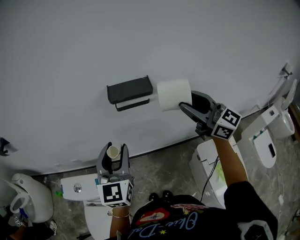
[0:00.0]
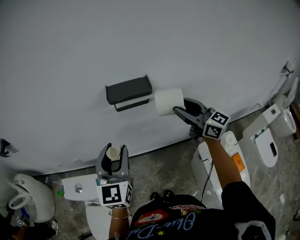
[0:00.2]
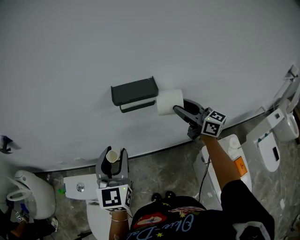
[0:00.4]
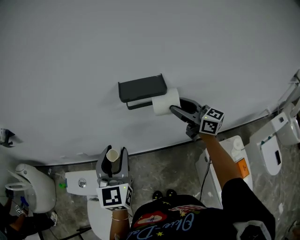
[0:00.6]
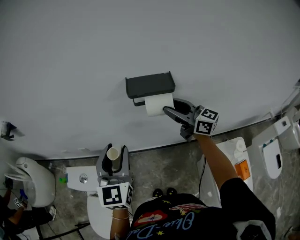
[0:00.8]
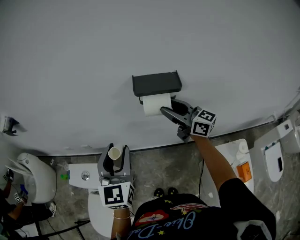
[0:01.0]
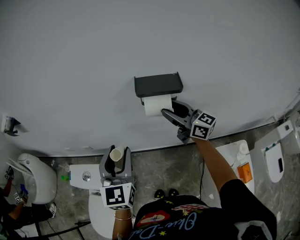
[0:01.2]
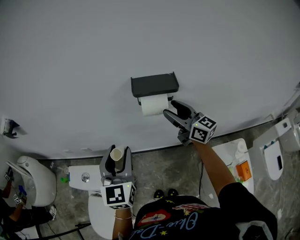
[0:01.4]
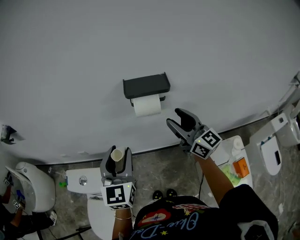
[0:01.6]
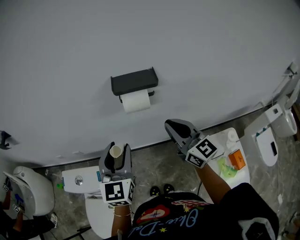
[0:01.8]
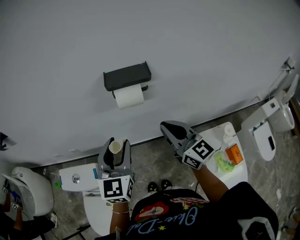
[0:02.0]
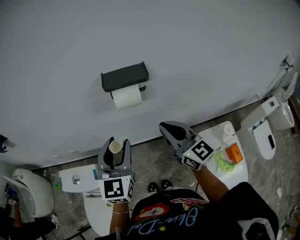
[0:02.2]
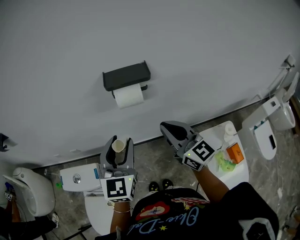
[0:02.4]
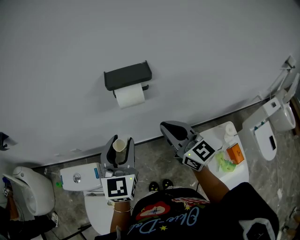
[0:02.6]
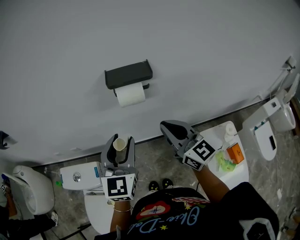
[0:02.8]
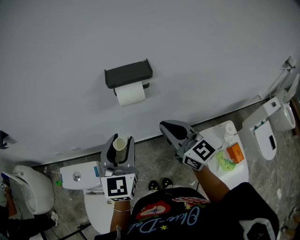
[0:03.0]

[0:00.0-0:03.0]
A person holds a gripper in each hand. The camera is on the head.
0.0 to 1.6 s: The right gripper travels downward and to the left by some 10 cm.
1.6 to 3.0 s: The right gripper shifts roughly 10 cm backward, and closes; the left gripper moves to the right, roughly 5 cm.

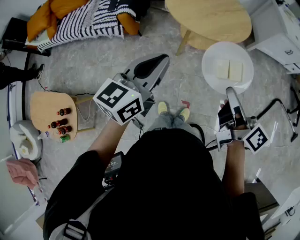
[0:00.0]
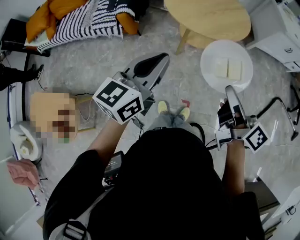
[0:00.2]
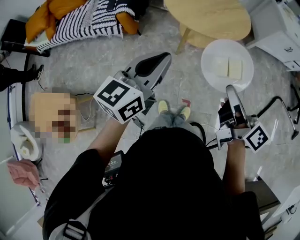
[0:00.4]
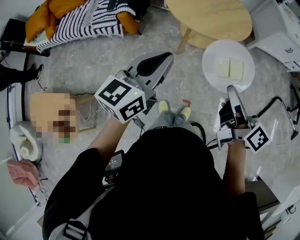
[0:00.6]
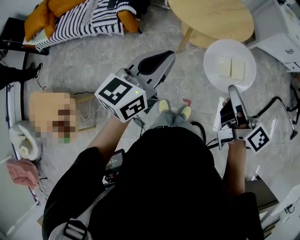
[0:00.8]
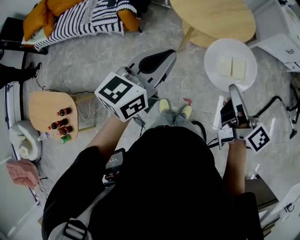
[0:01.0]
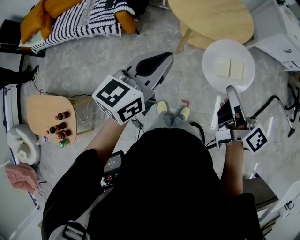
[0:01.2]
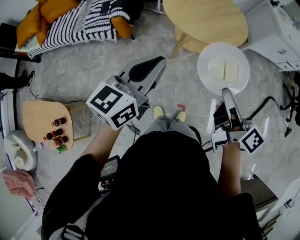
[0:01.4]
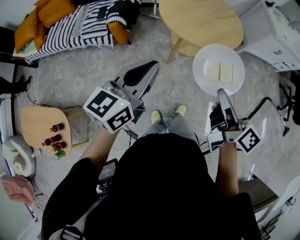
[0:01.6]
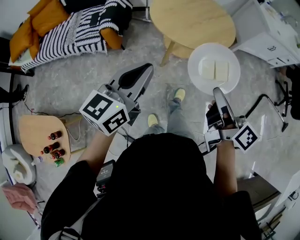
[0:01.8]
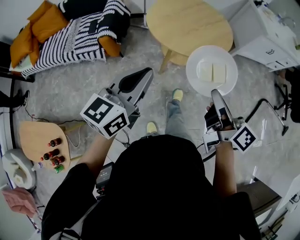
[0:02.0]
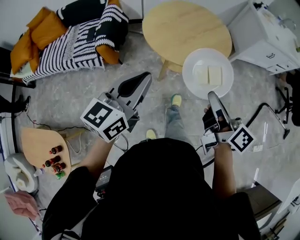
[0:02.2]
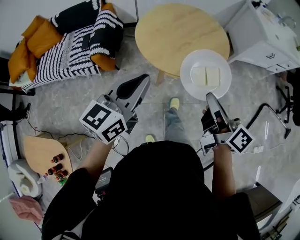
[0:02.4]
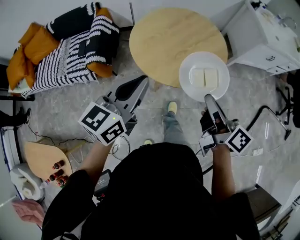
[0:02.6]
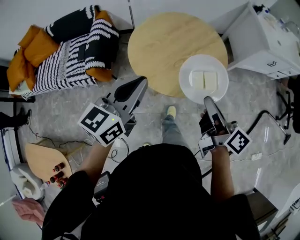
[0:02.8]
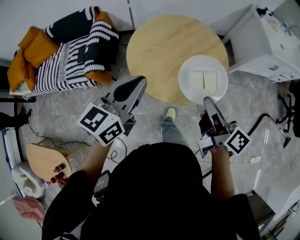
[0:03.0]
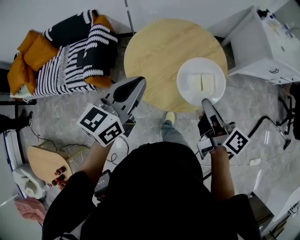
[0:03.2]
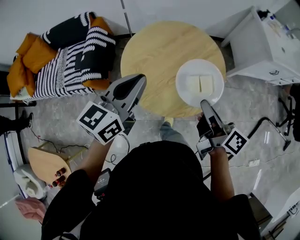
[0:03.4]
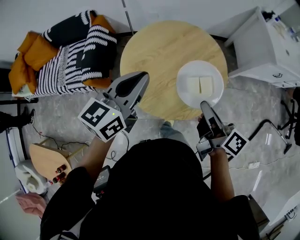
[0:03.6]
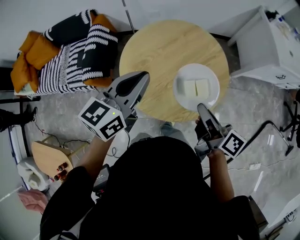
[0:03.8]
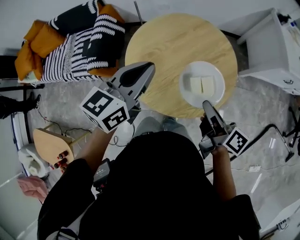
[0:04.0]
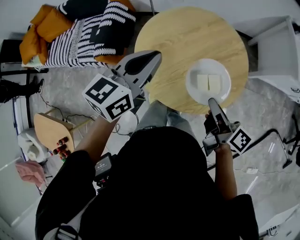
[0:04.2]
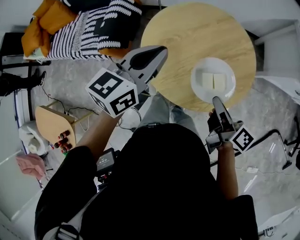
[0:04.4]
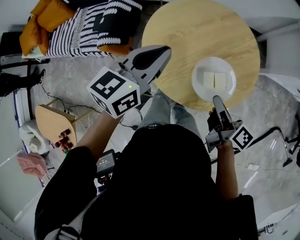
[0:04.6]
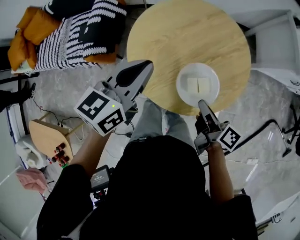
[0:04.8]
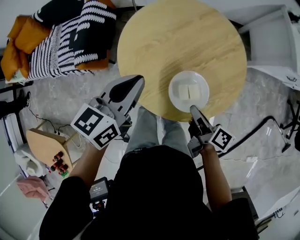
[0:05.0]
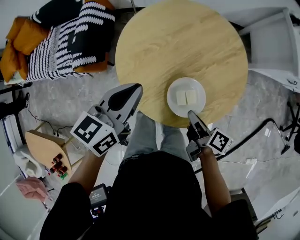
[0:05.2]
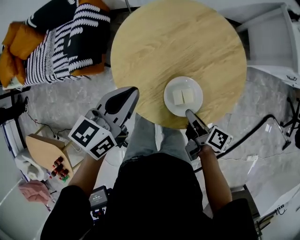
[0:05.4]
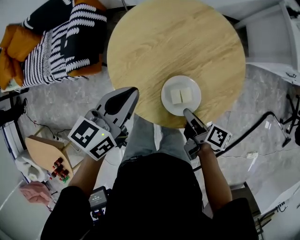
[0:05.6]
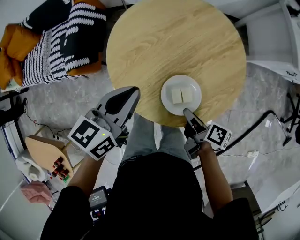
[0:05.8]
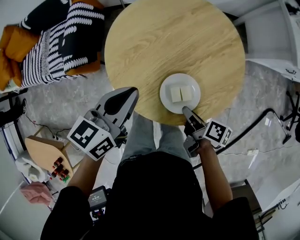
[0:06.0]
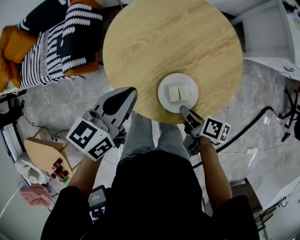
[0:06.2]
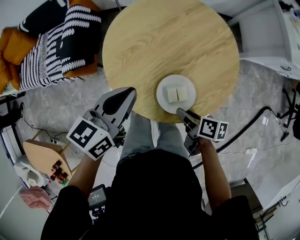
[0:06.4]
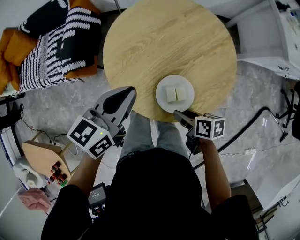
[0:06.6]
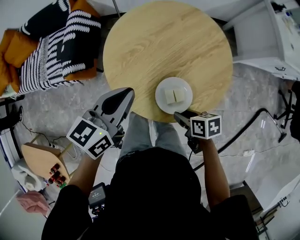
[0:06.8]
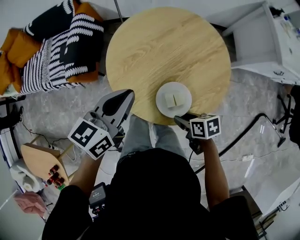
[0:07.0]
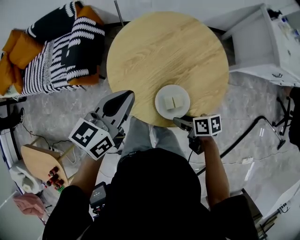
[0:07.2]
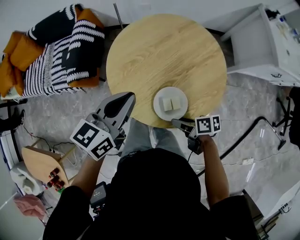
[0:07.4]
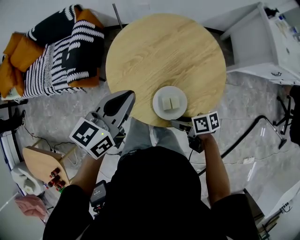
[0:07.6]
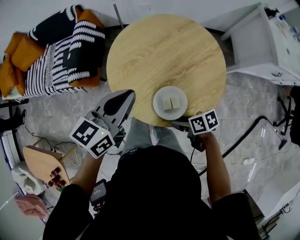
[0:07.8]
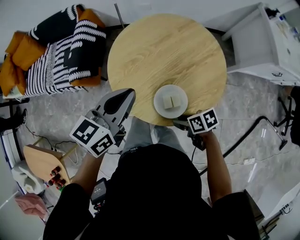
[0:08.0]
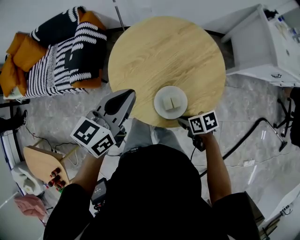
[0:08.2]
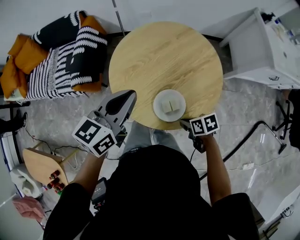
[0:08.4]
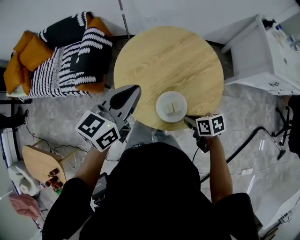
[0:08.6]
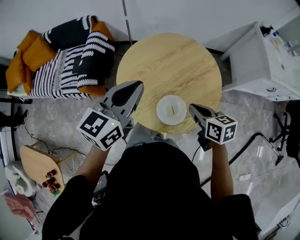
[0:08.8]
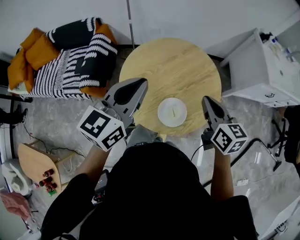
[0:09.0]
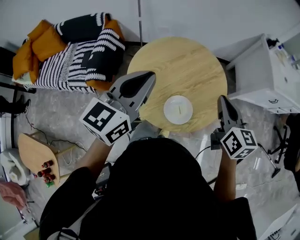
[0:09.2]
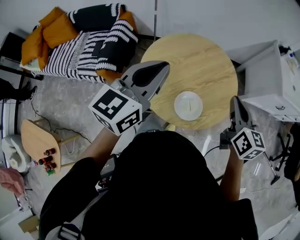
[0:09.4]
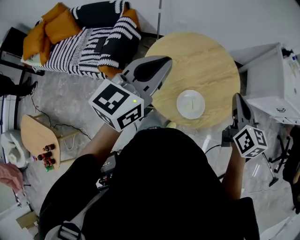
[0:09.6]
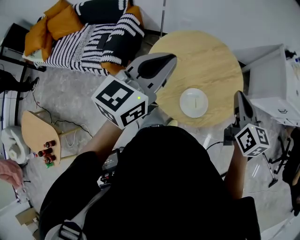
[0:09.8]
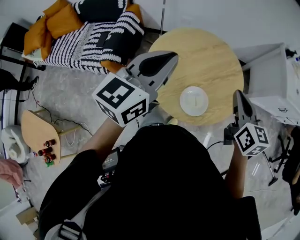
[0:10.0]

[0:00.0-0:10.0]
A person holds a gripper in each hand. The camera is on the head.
0.0 to 1.4 s: There are only small adjustments of the grippers.
1.4 to 2.8 s: Both grippers travel together forward, approximately 25 cm.
2.8 to 4.2 s: The right gripper moves forward and downward, some 15 cm; the left gripper heads forward, covering roughly 15 cm.
4.2 to 5.8 s: Both grippers move downward, approximately 15 cm. The right gripper turns by roughly 20 degrees.
5.8 to 7.2 s: The right gripper turns by approximately 40 degrees, and opens.
7.2 to 8.6 s: The right gripper moves approximately 5 cm, and closes its fingers; the left gripper is displaced upward by roughly 5 cm.
8.6 to 10.0 s: The right gripper goes approximately 25 cm upward, and swivels approximately 50 degrees, while the left gripper heads upward, covering about 10 cm.

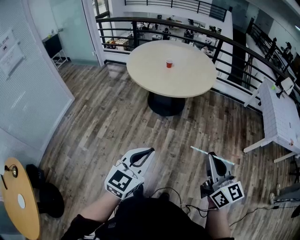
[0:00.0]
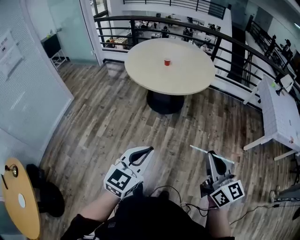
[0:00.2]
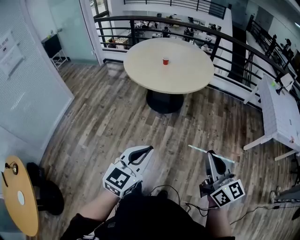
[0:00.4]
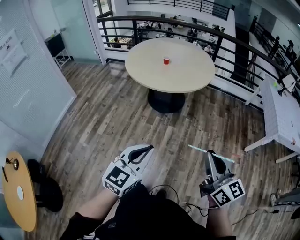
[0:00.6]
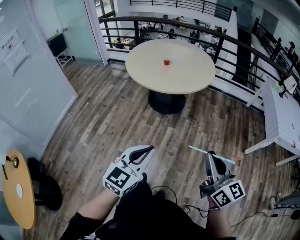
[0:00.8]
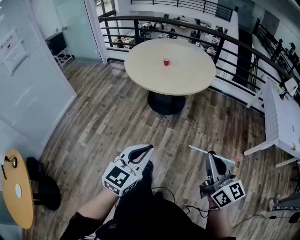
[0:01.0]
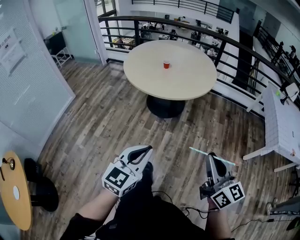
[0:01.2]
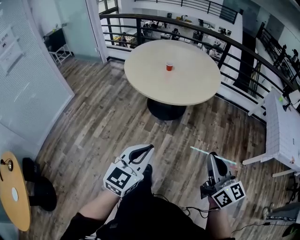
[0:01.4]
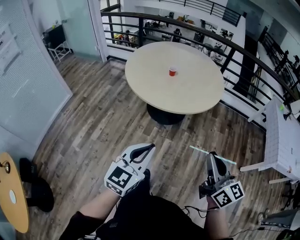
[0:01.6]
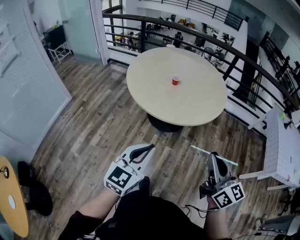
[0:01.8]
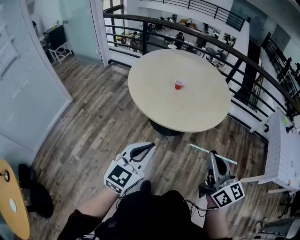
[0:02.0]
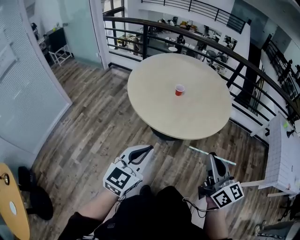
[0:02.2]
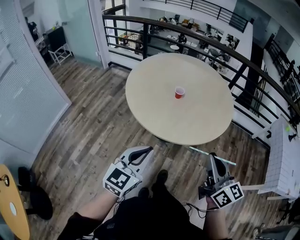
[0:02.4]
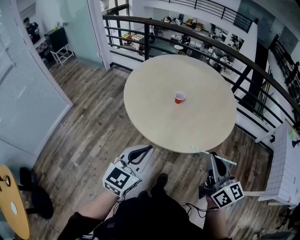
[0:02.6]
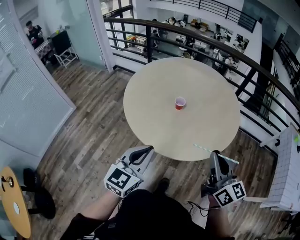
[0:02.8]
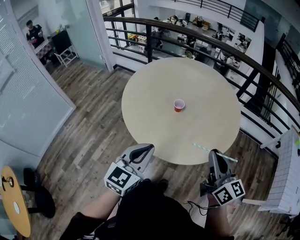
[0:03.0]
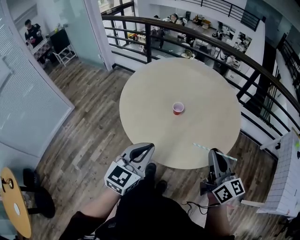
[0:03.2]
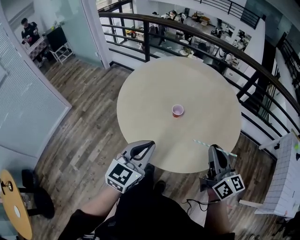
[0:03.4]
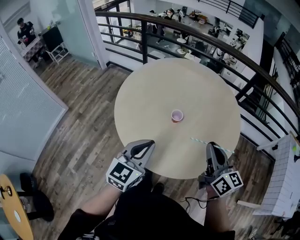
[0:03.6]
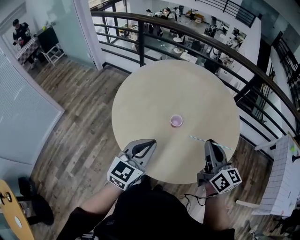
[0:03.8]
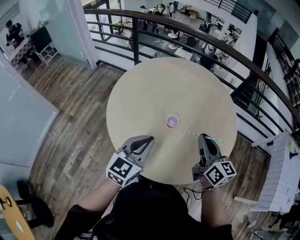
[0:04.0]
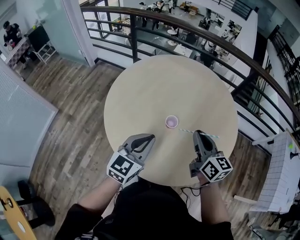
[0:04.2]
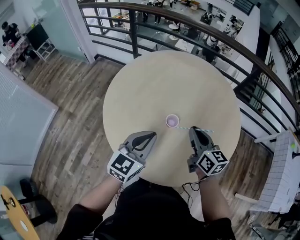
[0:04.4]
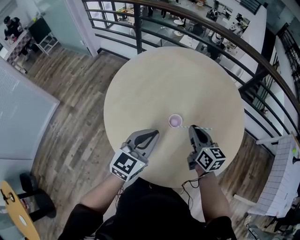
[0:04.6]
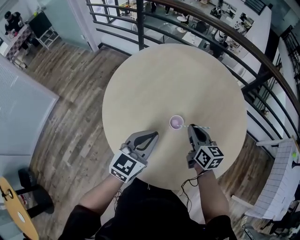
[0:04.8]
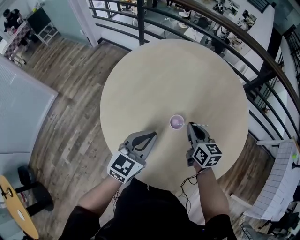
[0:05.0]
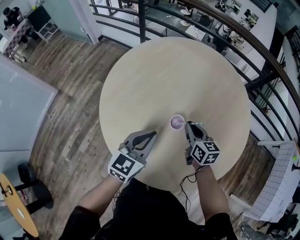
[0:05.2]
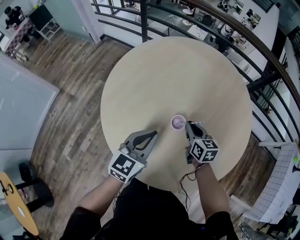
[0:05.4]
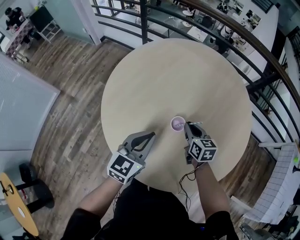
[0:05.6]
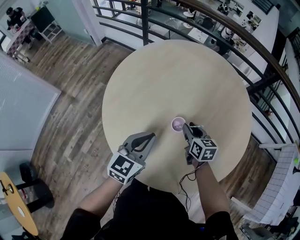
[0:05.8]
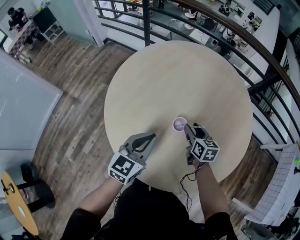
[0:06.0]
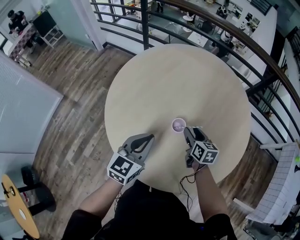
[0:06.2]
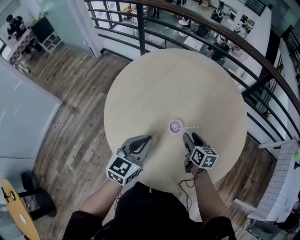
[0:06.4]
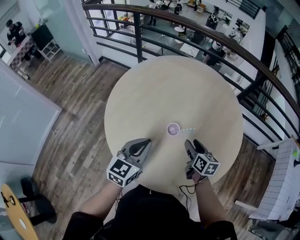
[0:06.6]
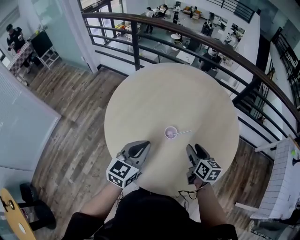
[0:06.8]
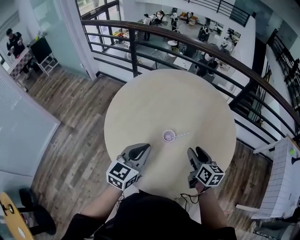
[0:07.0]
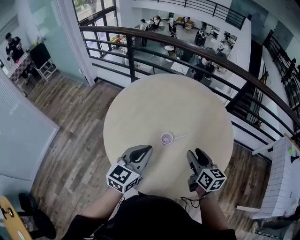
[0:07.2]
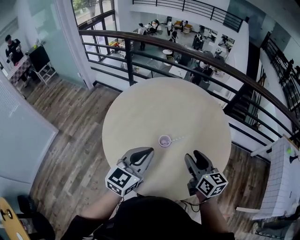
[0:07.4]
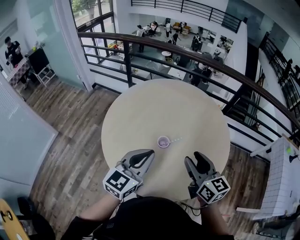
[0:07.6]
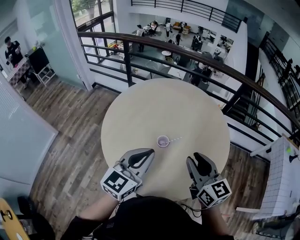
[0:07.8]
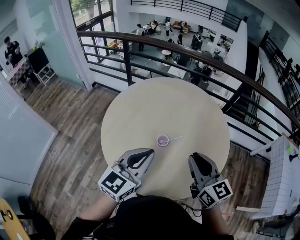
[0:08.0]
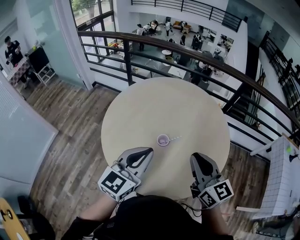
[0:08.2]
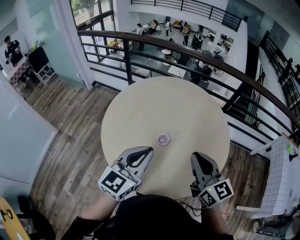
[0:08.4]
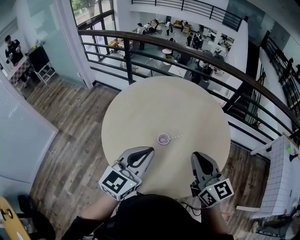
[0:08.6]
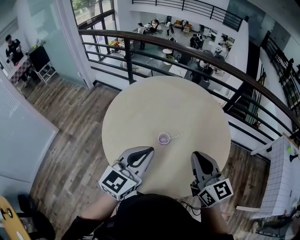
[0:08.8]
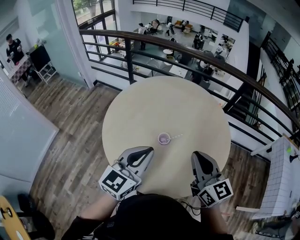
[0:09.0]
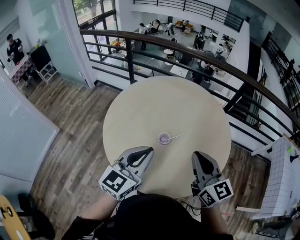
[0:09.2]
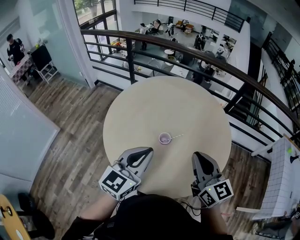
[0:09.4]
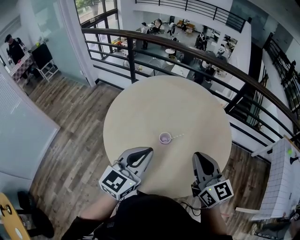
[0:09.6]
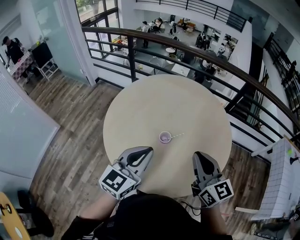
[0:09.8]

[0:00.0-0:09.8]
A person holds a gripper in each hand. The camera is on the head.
0.0 to 1.4 s: The two grippers go some 15 cm forward and to the right.
1.4 to 2.8 s: Both grippers move forward, roughly 40 cm.
2.8 to 4.2 s: Both grippers move forward, approximately 30 cm.
4.2 to 5.6 s: The left gripper goes about 10 cm downward and forward. The right gripper travels downward and forward by approximately 25 cm, and changes its angle by about 20 degrees.
5.6 to 7.0 s: The left gripper is displaced upward by some 10 cm, while the right gripper is displaced upward, backward and to the right by some 15 cm, and opens up.
7.0 to 8.4 s: The left gripper travels upward by some 10 cm; the right gripper moves upward and backward, some 20 cm, swivels approximately 30 degrees, and closes.
8.4 to 9.8 s: The grippers stay close to where they were, moving slightly.

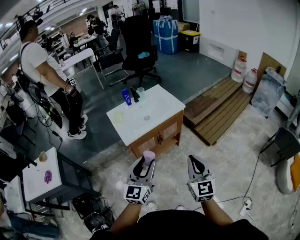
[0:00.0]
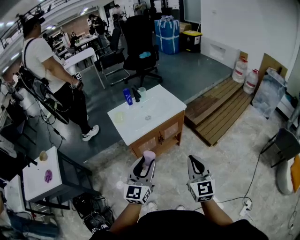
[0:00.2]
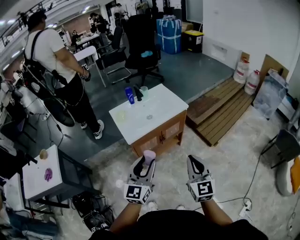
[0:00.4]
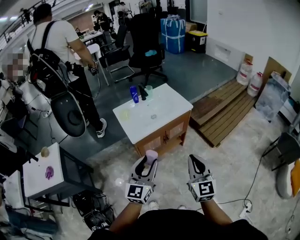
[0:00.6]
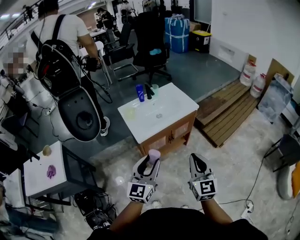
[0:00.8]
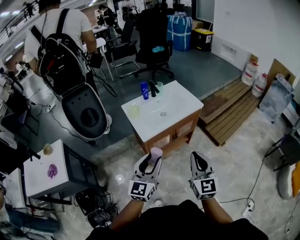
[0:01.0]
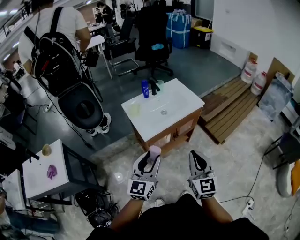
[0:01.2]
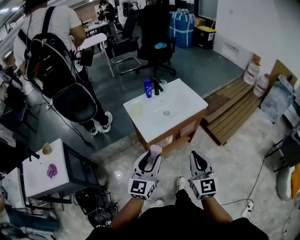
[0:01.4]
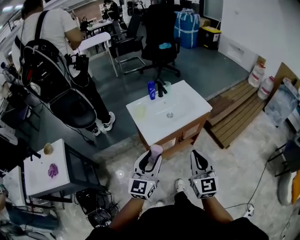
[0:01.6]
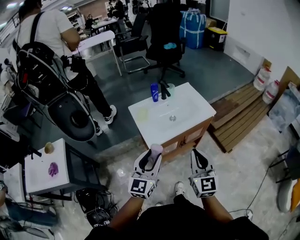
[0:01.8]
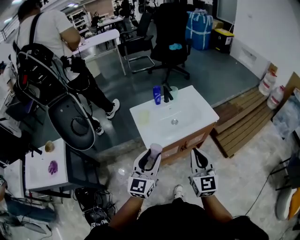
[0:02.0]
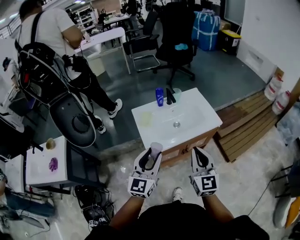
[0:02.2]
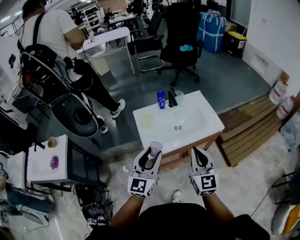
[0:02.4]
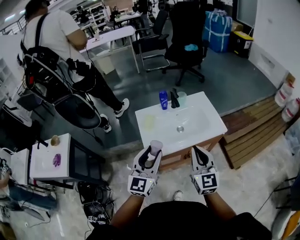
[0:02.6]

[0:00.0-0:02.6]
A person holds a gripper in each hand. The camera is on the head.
0.0 to 1.2 s: Both grippers move to the left, roughly 15 cm.
1.2 to 2.6 s: The grippers both shift forward by approximately 20 cm.
